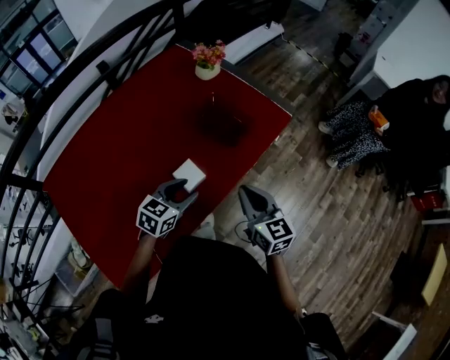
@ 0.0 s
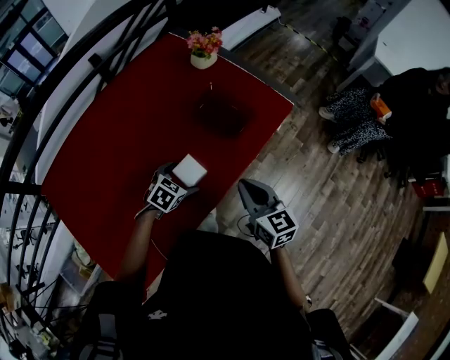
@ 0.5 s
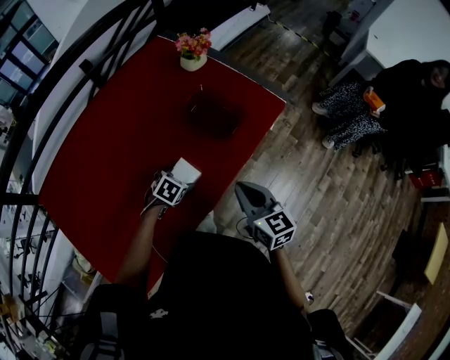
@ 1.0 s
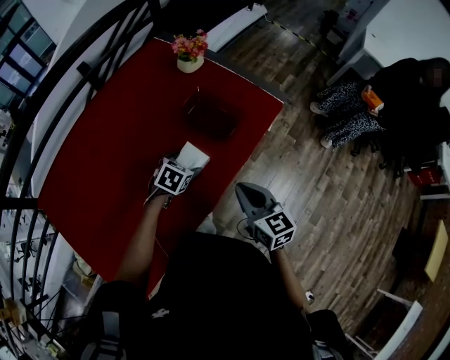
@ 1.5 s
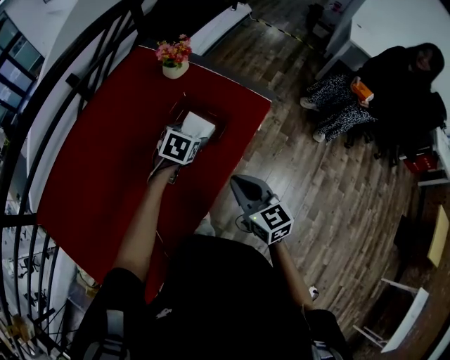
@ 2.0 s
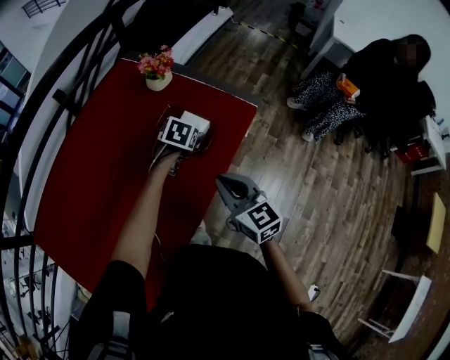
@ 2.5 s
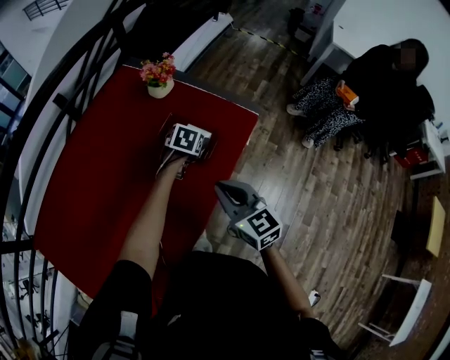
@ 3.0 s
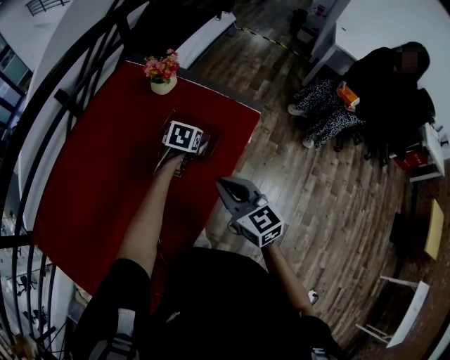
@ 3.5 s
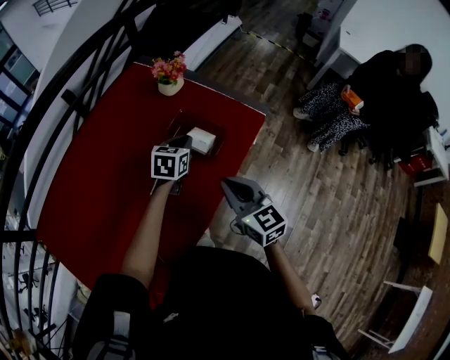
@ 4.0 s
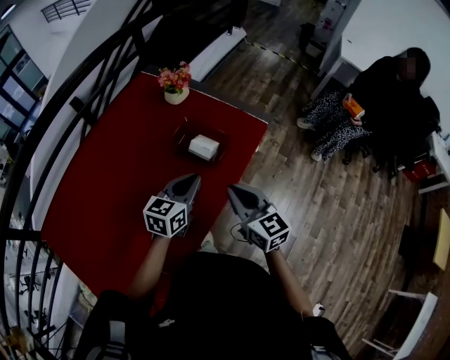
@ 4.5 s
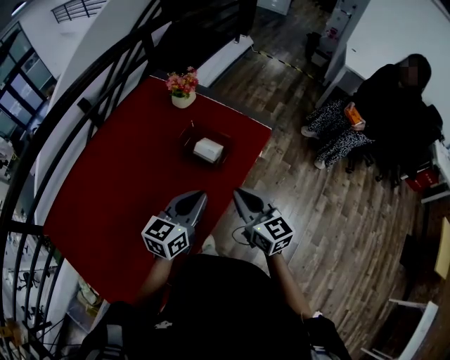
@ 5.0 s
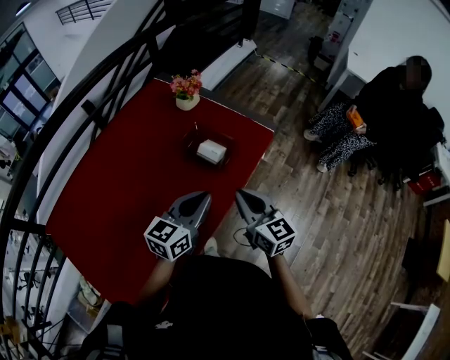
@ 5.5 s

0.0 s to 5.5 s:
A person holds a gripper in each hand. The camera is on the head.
0.0 to 2.0 s: The left gripper shifts roughly 20 cm forward, turns by roughly 20 degrees, and opens up, while the right gripper travels forward by approximately 5 cm.
2.0 to 3.5 s: The right gripper ends up about 5 cm from where it was. The left gripper shifts some 10 cm forward.
3.5 to 5.5 s: The left gripper goes about 30 cm backward and upward, tilts its fingers approximately 40 degrees upward, and closes; the right gripper changes place by about 5 cm.

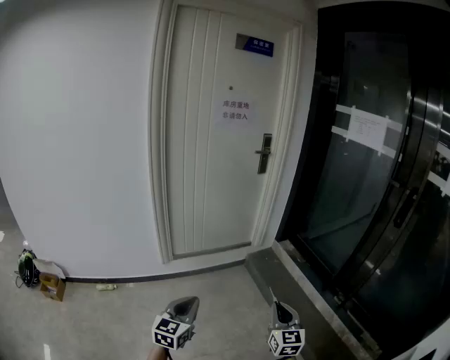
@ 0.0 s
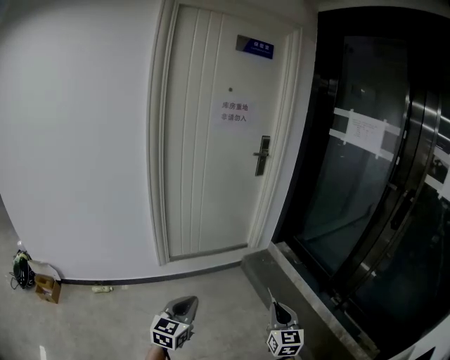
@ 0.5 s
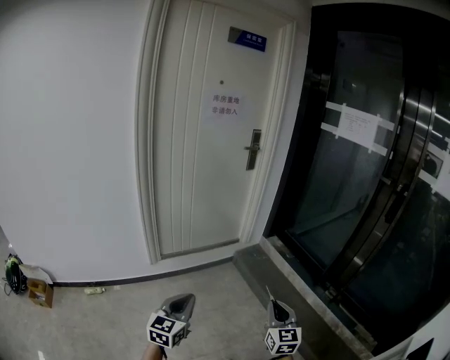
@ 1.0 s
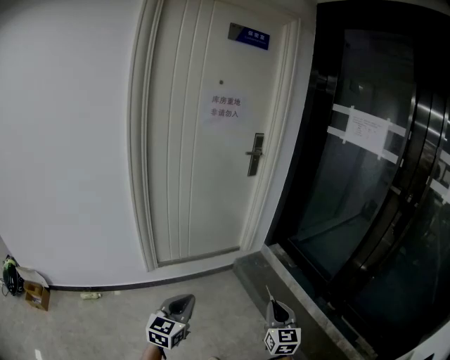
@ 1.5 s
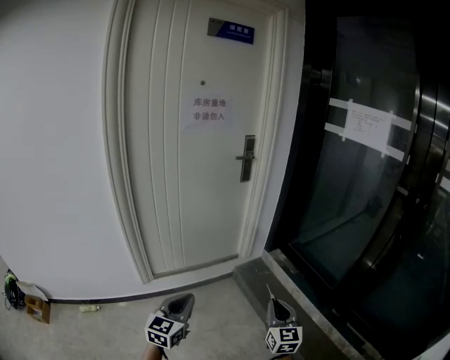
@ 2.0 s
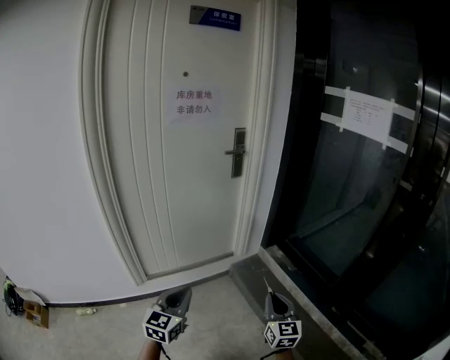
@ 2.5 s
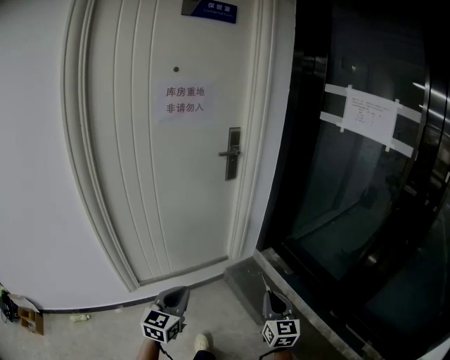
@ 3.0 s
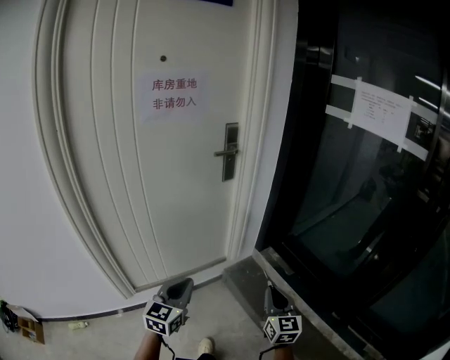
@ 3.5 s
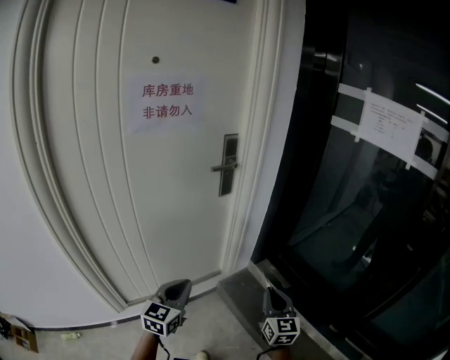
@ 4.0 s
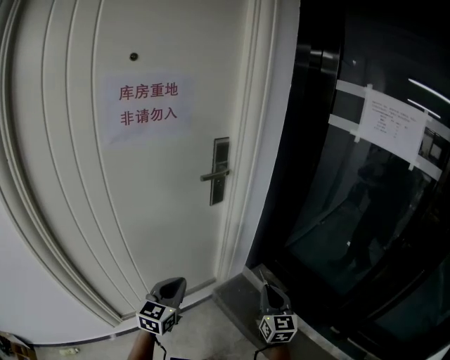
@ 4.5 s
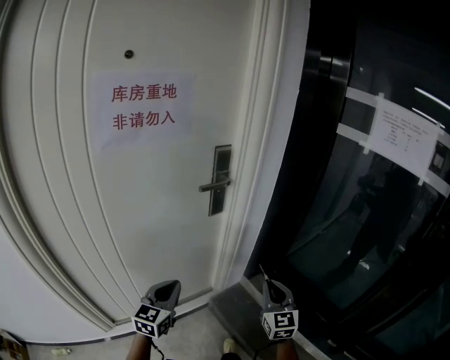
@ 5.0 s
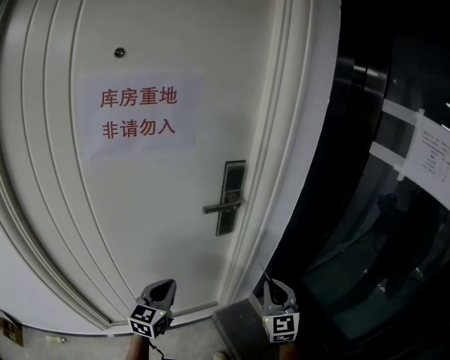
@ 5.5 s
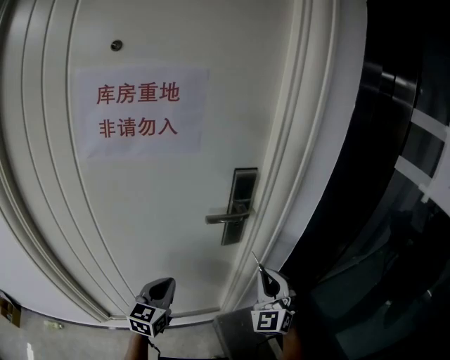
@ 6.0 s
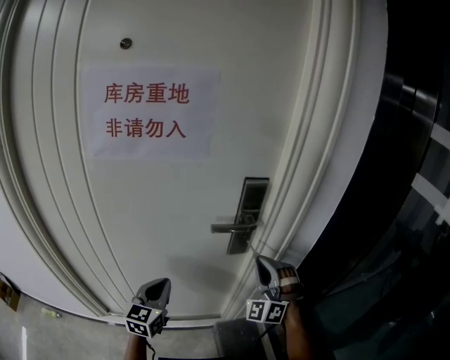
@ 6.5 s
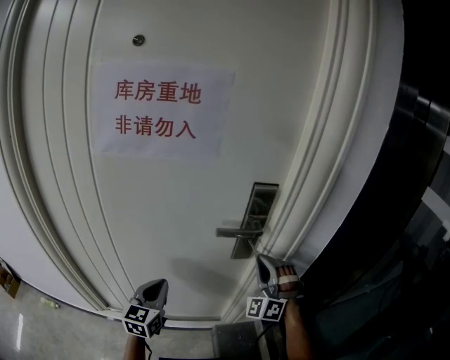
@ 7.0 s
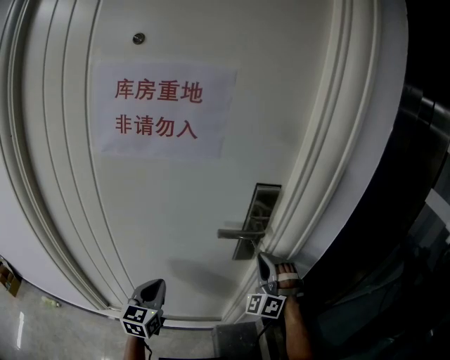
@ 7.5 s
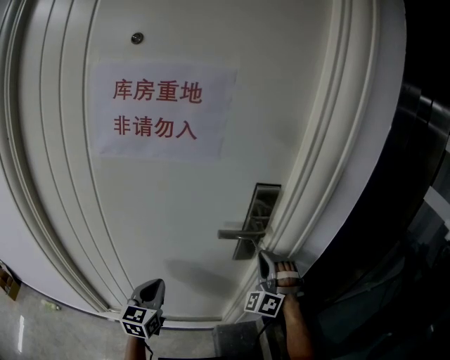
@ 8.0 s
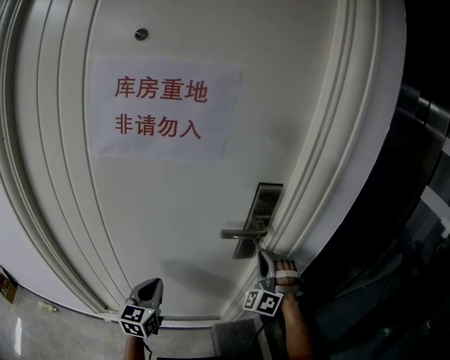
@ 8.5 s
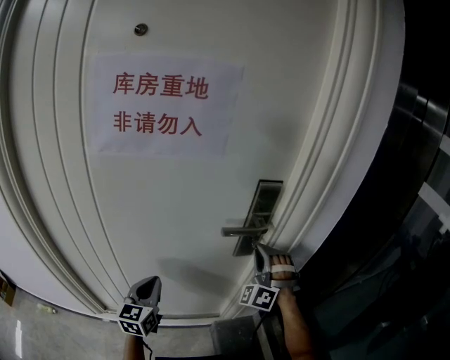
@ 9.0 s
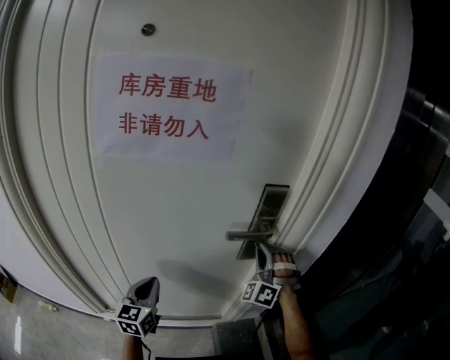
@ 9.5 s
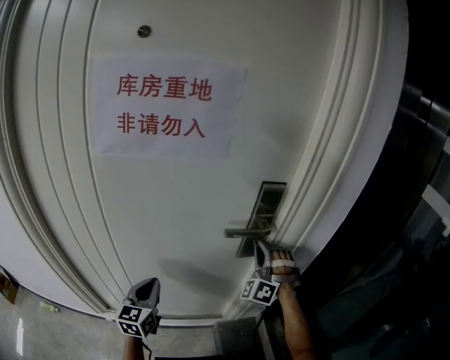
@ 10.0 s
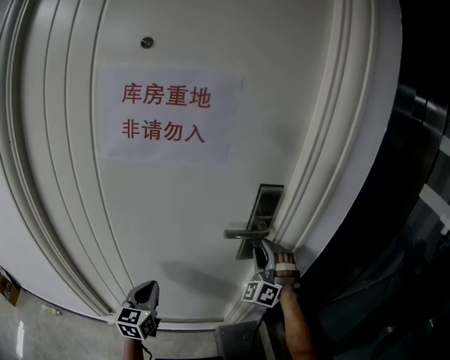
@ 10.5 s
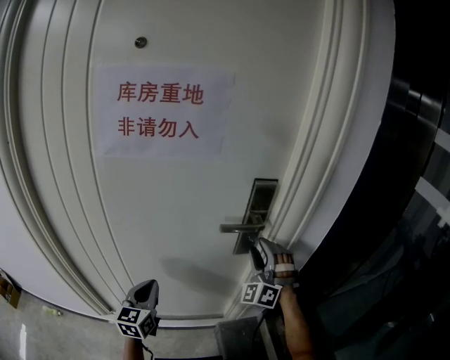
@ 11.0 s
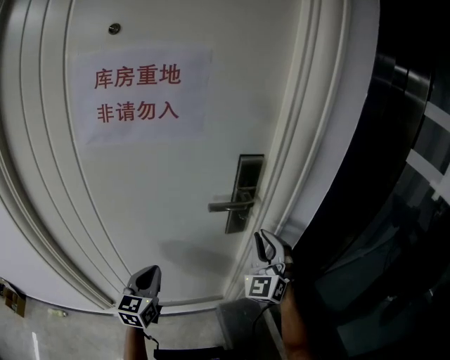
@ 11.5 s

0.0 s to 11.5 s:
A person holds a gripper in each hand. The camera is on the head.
0.0 to 2.0 s: The grippers both shift forward by some 20 cm.
2.0 to 4.0 s: The two grippers go some 35 cm forward.
4.0 to 6.0 s: Both grippers move forward, approximately 30 cm. The left gripper turns by approximately 20 degrees. The right gripper rolls counterclockwise, seen from behind, by about 50 degrees.
6.0 to 7.5 s: The right gripper travels forward by roughly 15 cm, and changes its angle by some 30 degrees.
7.5 to 9.5 s: There are only small adjustments of the grippers.
9.5 to 11.5 s: The right gripper shifts about 10 cm backward, rotates about 40 degrees, and opens, then closes once more.

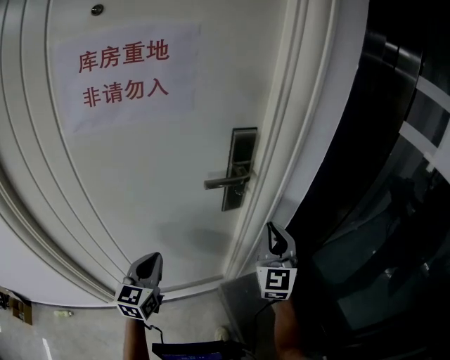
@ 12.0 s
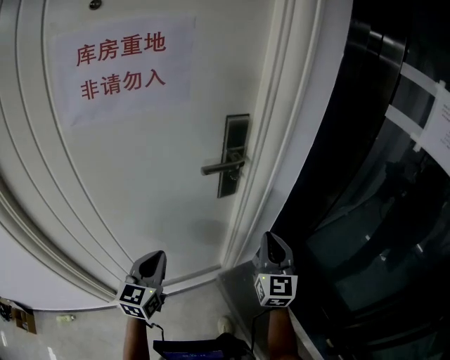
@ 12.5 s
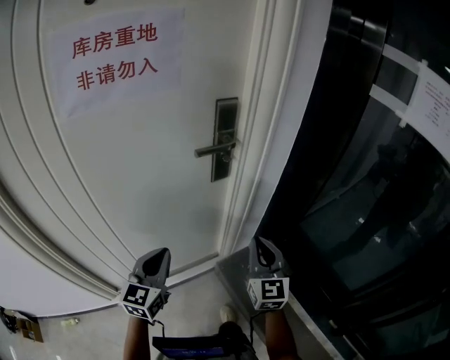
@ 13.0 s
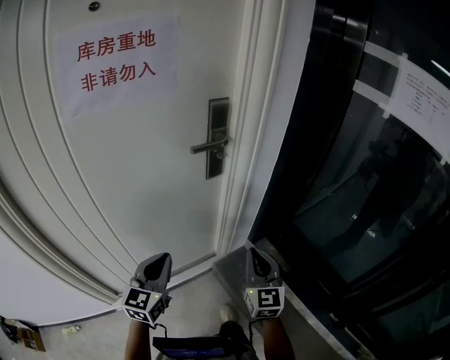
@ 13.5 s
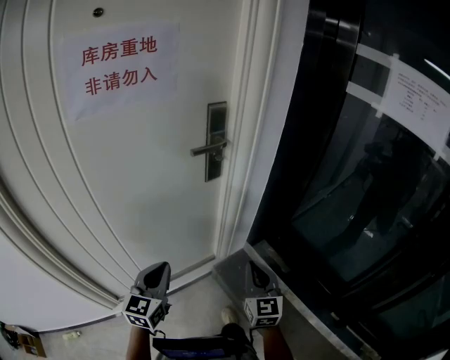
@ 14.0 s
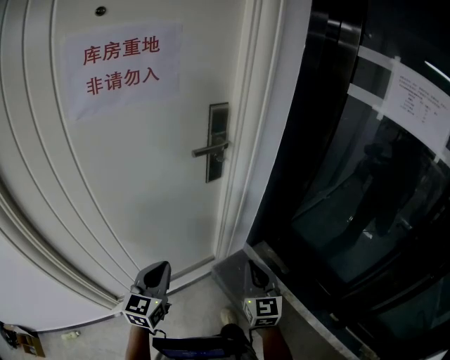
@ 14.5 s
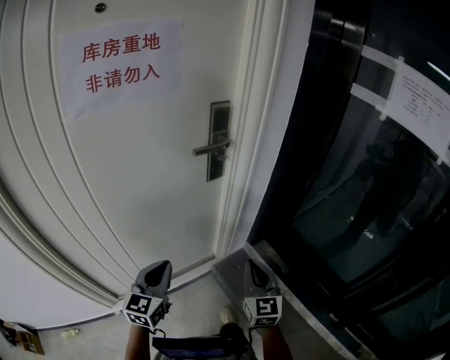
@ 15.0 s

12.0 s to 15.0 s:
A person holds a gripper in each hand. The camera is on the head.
12.0 to 13.5 s: The right gripper travels backward and downward by about 20 cm; the left gripper heads backward, covering roughly 10 cm.
13.5 to 15.0 s: There are only small adjustments of the grippers.

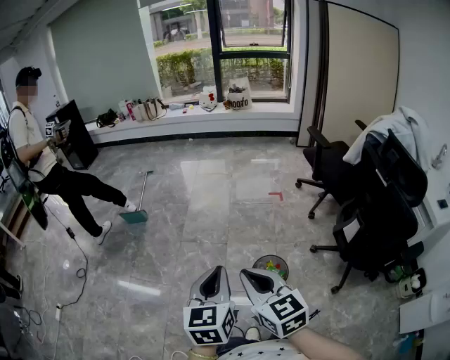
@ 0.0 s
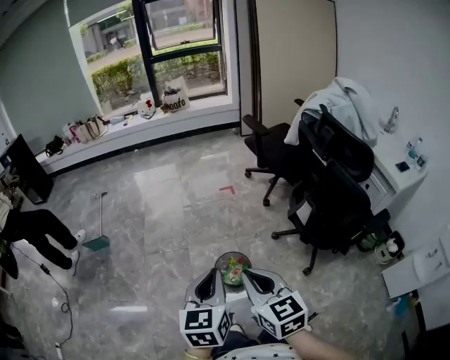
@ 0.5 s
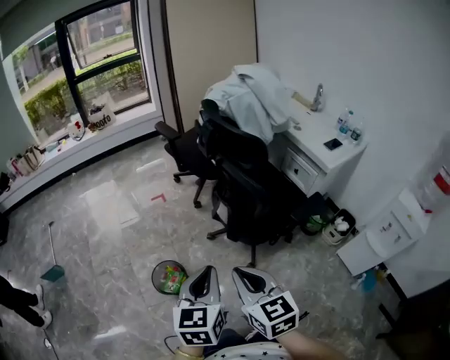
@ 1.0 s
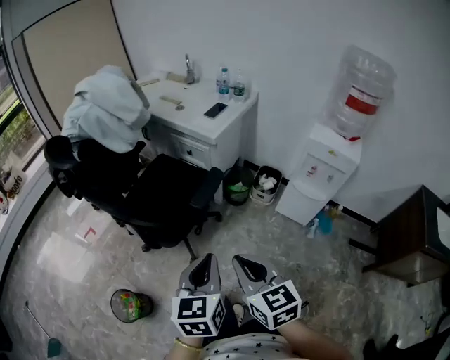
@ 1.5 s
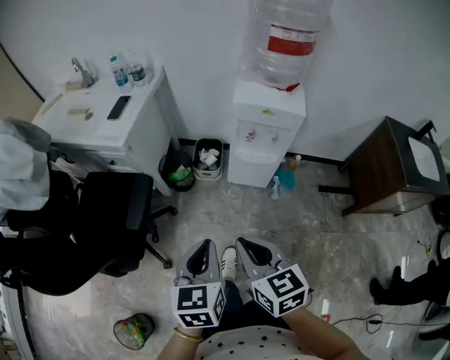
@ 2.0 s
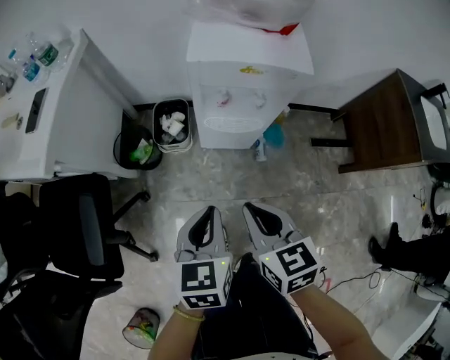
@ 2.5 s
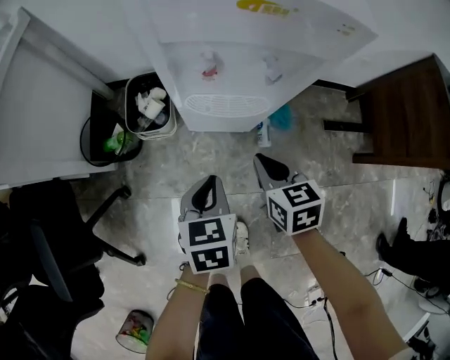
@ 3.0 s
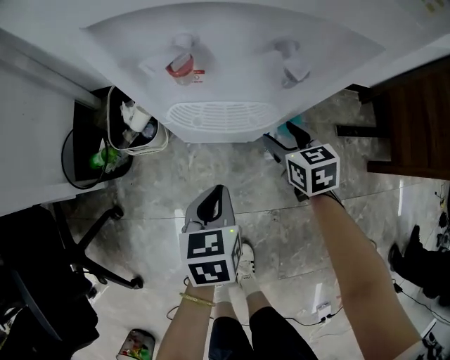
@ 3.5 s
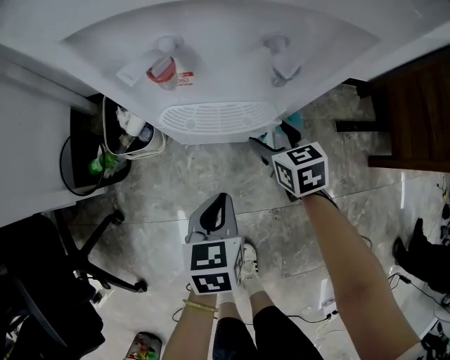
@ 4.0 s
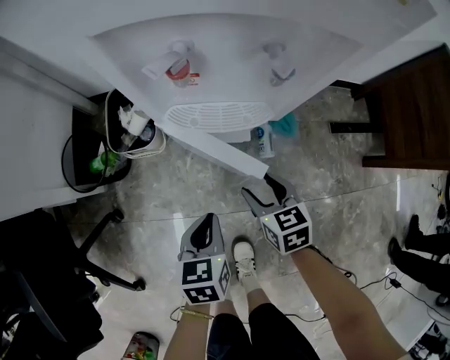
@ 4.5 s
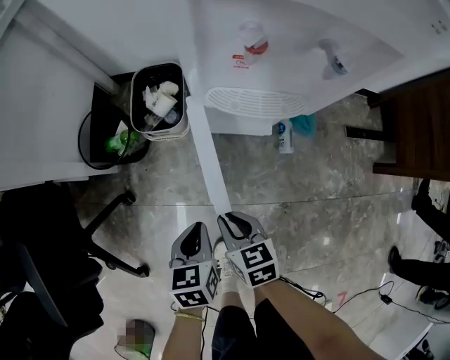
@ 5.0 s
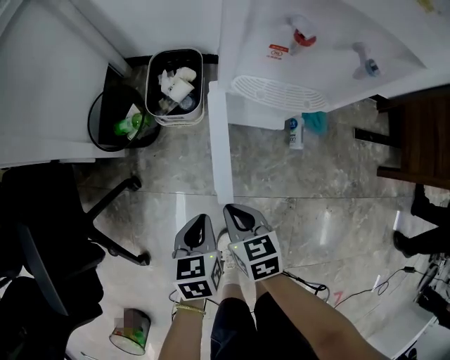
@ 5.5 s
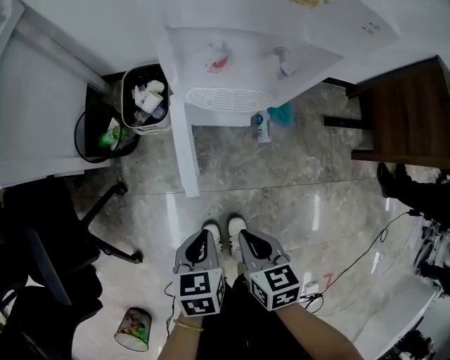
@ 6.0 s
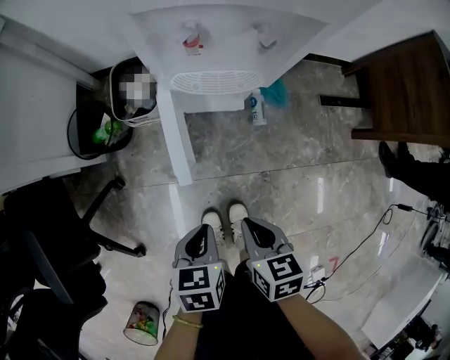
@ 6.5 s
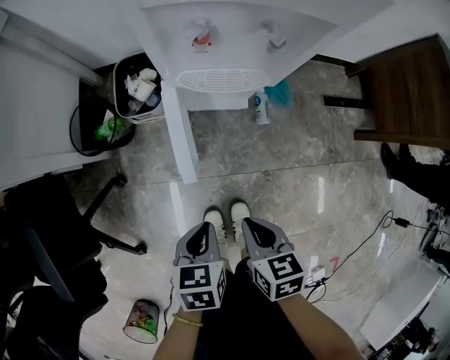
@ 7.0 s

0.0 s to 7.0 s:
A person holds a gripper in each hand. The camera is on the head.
0.0 to 2.0 s: The two grippers travel together, about 1 m. The right gripper turns by about 90 degrees, while the left gripper swivels approximately 80 degrees.
2.0 to 3.5 s: The right gripper heads downward, forward and to the right, covering some 70 cm, turns by approximately 20 degrees, and opens, while the left gripper goes some 60 cm downward and forward, and changes its angle by some 20 degrees.
3.5 to 5.0 s: The left gripper is displaced to the left and backward by about 20 cm, while the right gripper shifts roughly 30 cm to the left and backward, and closes.
5.0 to 7.0 s: The two grippers go roughly 15 cm upward, backward and to the right.
